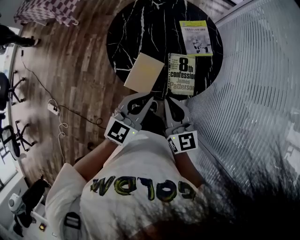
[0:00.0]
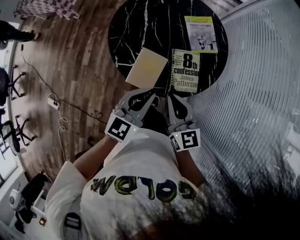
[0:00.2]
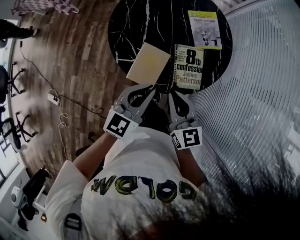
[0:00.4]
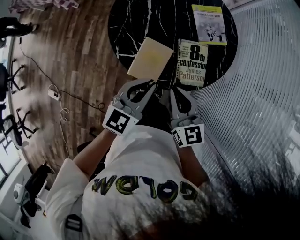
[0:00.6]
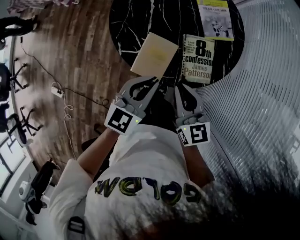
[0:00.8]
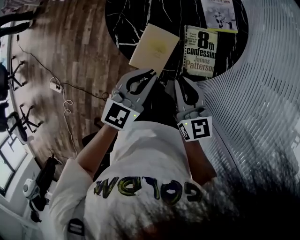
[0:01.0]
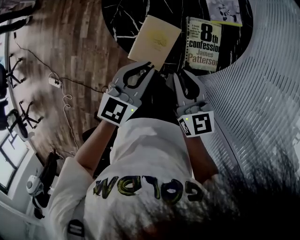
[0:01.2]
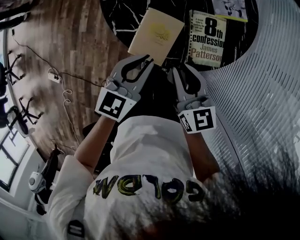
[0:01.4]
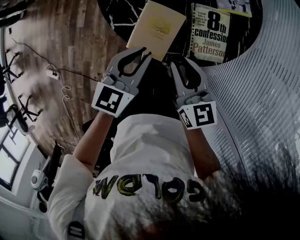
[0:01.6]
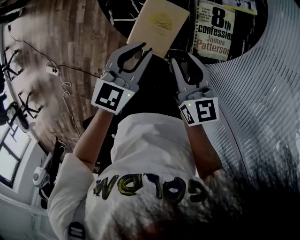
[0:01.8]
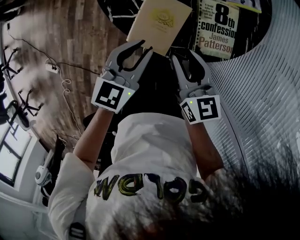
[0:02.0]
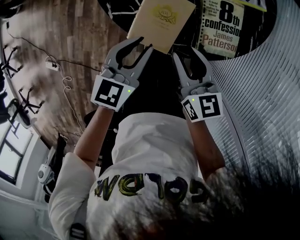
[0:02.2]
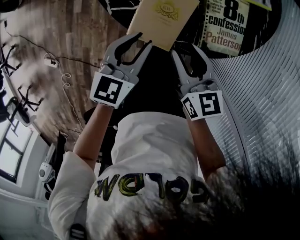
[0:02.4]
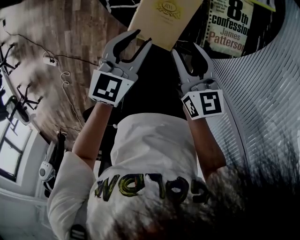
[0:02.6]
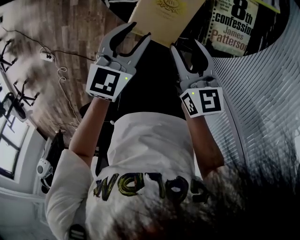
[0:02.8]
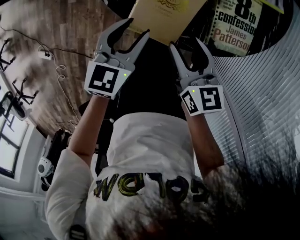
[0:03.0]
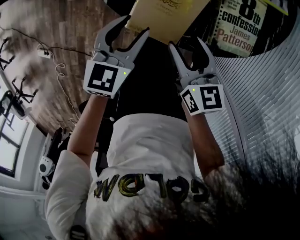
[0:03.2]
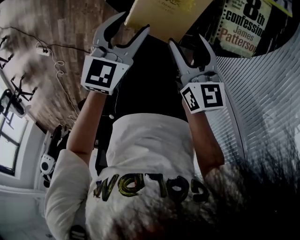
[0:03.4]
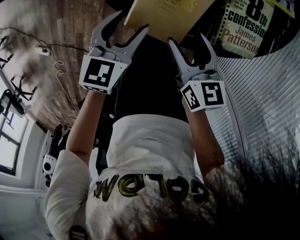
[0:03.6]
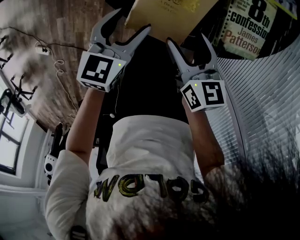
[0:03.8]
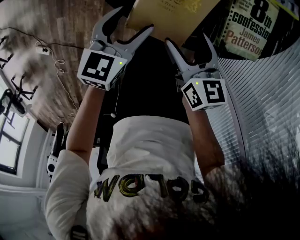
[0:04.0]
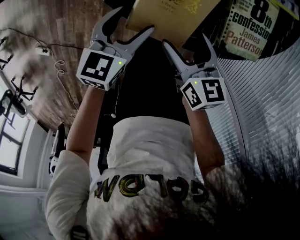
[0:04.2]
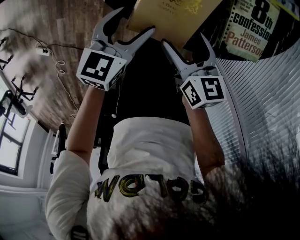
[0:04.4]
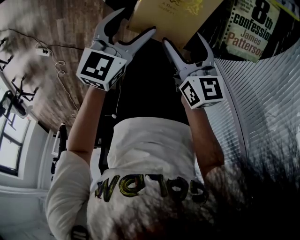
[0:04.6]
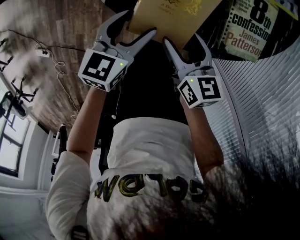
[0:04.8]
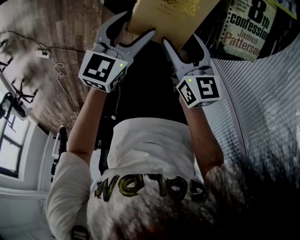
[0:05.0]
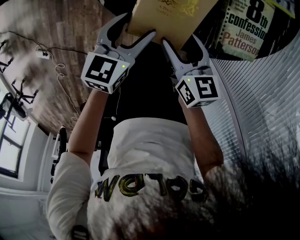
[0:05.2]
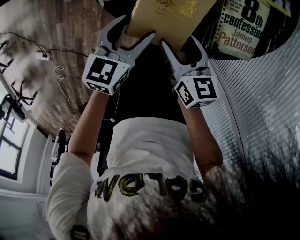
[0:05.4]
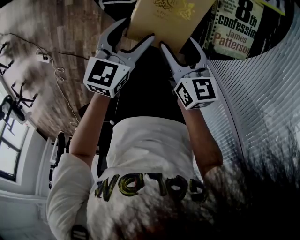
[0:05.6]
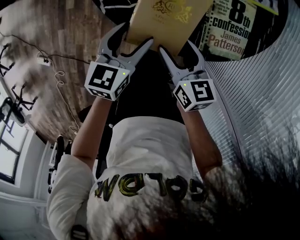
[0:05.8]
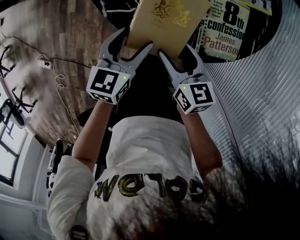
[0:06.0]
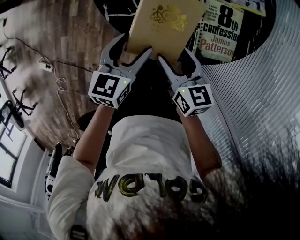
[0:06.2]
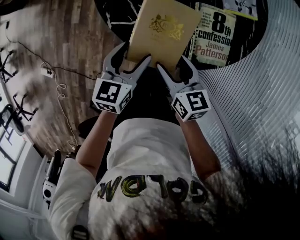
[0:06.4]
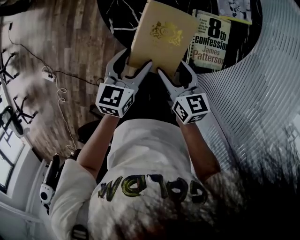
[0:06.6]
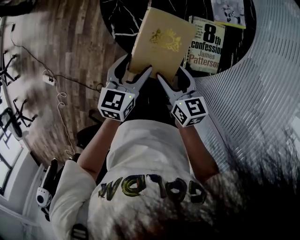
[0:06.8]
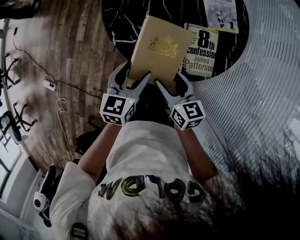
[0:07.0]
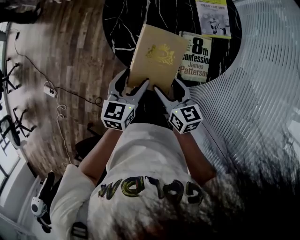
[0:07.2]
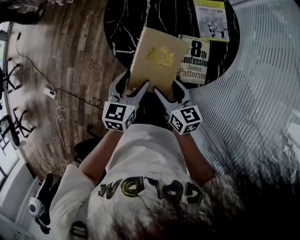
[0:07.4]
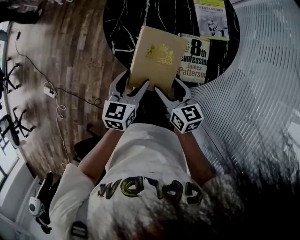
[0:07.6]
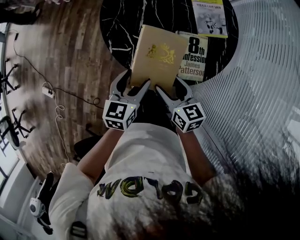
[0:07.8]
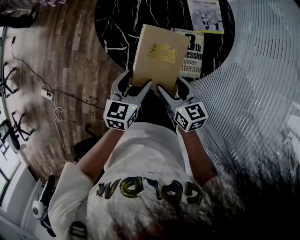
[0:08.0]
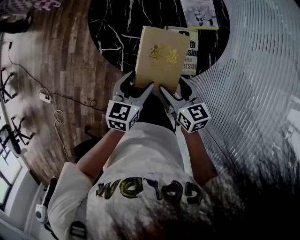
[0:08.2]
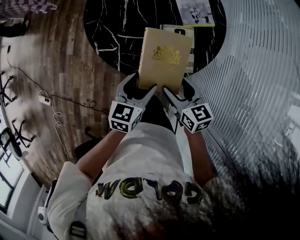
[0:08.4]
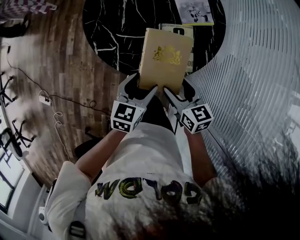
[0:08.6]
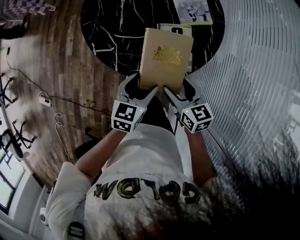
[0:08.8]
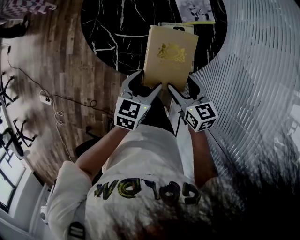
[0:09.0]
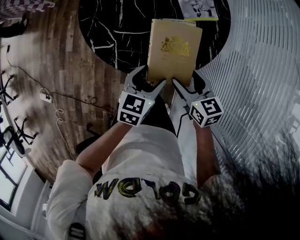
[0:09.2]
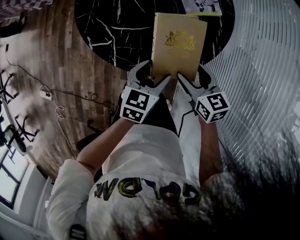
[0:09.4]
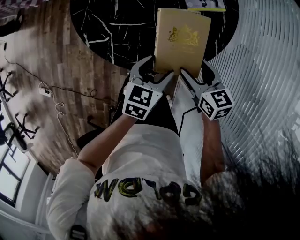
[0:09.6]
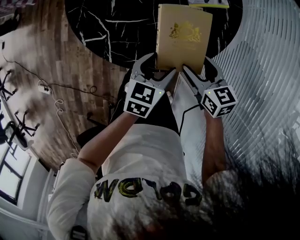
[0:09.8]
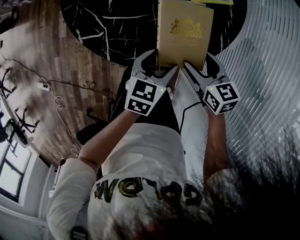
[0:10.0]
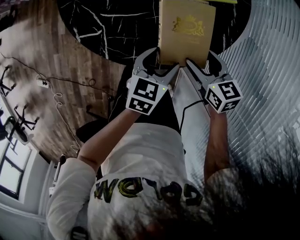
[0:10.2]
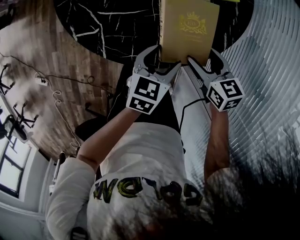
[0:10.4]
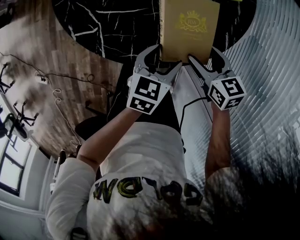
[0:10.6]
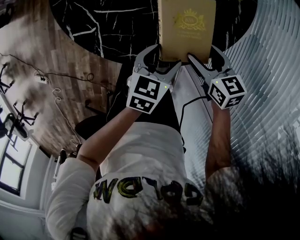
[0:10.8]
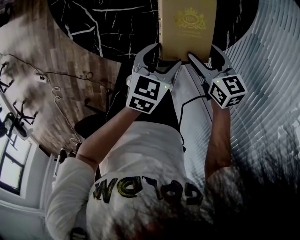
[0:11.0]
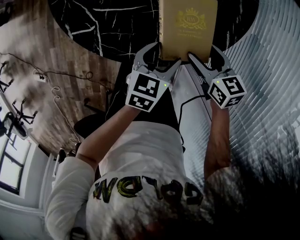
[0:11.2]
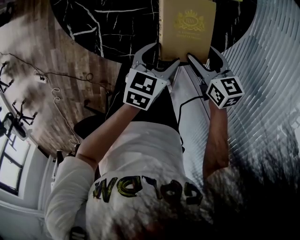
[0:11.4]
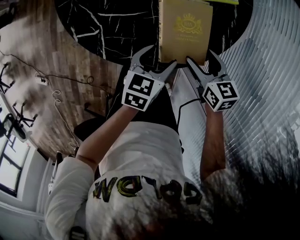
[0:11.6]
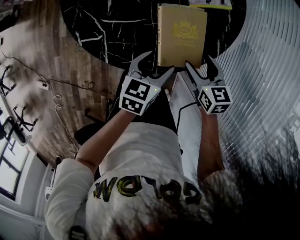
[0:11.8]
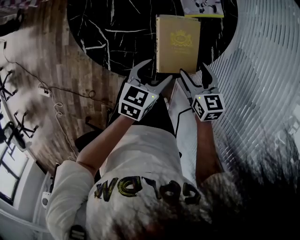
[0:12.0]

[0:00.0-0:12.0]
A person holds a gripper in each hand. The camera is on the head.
0:00.0 to 0:01.6: The two grippers go some 15 cm downward.
0:01.6 to 0:03.0: Both grippers move downward, some 10 cm. The left gripper opens up, while the right gripper opens up.
0:03.0 to 0:04.4: The two grippers go approximately 5 cm downward. The right gripper opens up. The left gripper opens its fingers.
0:04.4 to 0:06.0: The two grippers go some 5 cm upward.
0:06.0 to 0:07.6: Both grippers travel together upward, about 10 cm.
0:07.6 to 0:09.0: Both grippers travel together to the right, approximately 10 cm.
0:09.0 to 0:10.4: The left gripper is displaced downward and to the right by about 15 cm, while the right gripper moves downward, to the right and forward, roughly 15 cm.
0:10.4 to 0:12.0: The grippers make only small movements.

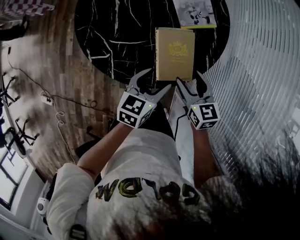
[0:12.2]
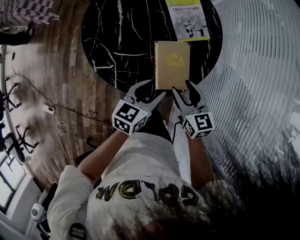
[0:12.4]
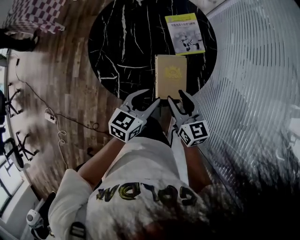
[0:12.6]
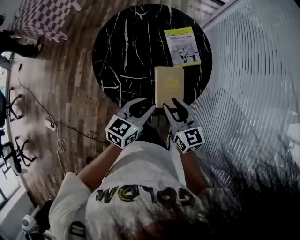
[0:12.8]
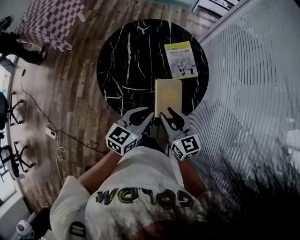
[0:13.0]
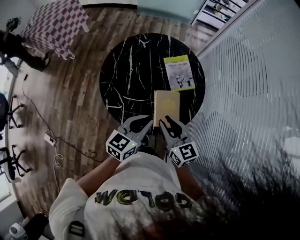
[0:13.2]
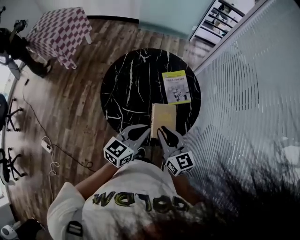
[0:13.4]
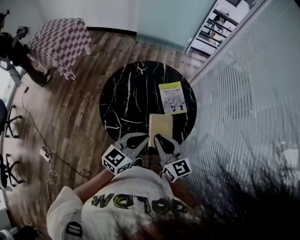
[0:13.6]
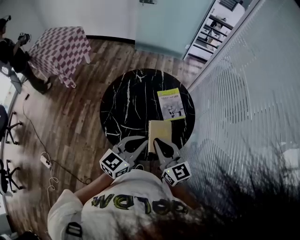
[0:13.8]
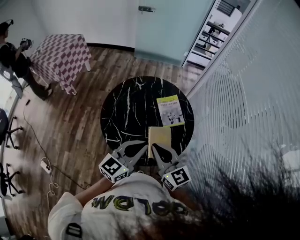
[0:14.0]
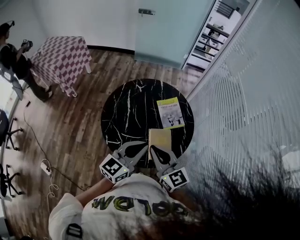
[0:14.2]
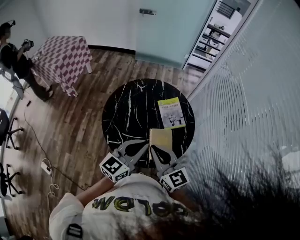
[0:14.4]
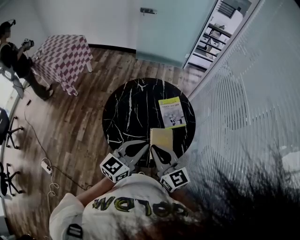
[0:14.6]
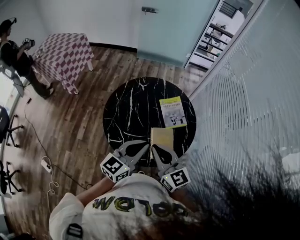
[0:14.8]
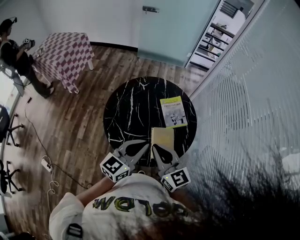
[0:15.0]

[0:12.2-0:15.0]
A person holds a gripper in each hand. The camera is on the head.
0:12.2 to 0:13.6: The right gripper goes about 25 cm upward and to the left, swivels approximately 30 degrees, and closes. The left gripper moves upward, roughly 25 cm, turns by roughly 30 degrees, and closes its fingers.
0:13.6 to 0:15.0: The right gripper moves upward, roughly 5 cm, while the left gripper ends up about 5 cm from where it was.

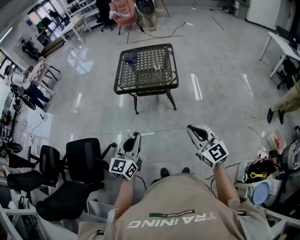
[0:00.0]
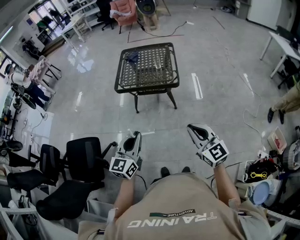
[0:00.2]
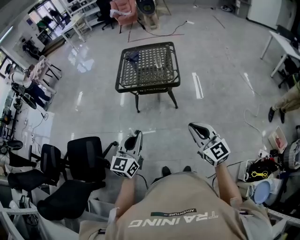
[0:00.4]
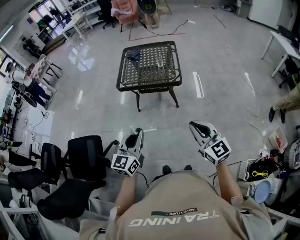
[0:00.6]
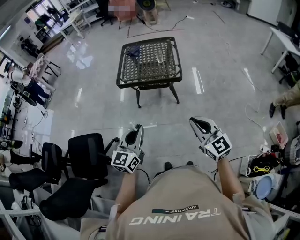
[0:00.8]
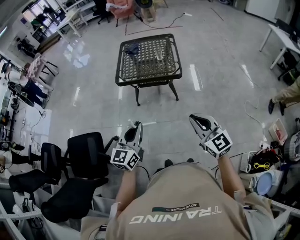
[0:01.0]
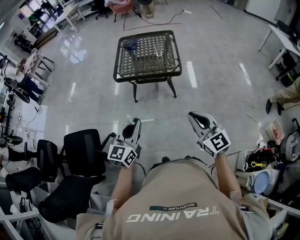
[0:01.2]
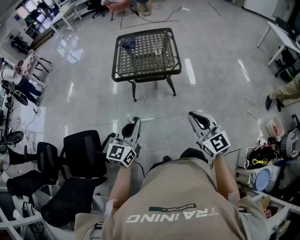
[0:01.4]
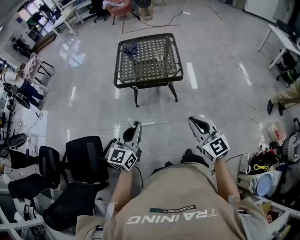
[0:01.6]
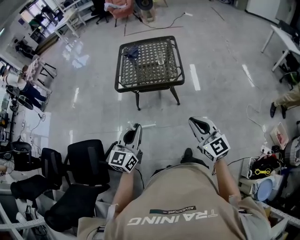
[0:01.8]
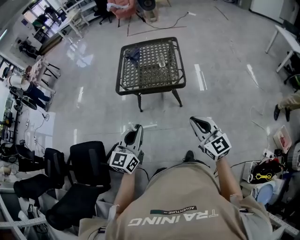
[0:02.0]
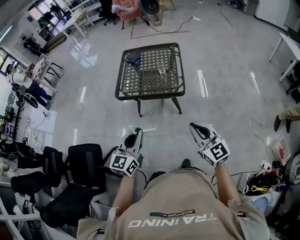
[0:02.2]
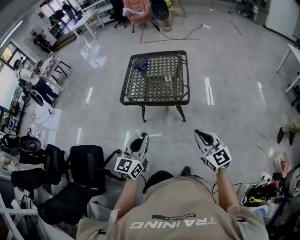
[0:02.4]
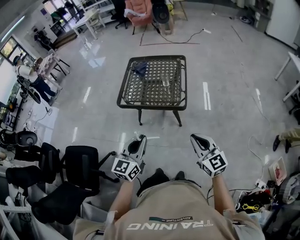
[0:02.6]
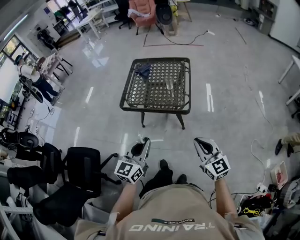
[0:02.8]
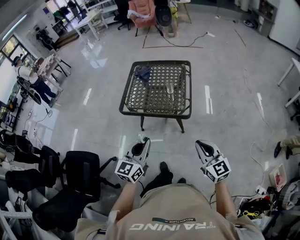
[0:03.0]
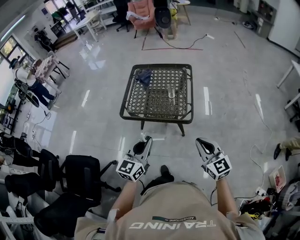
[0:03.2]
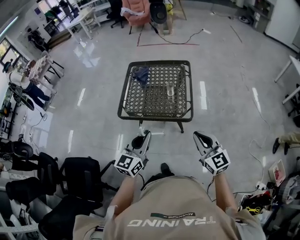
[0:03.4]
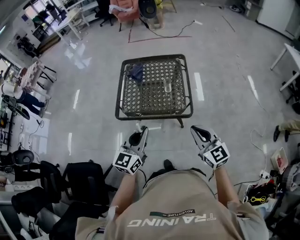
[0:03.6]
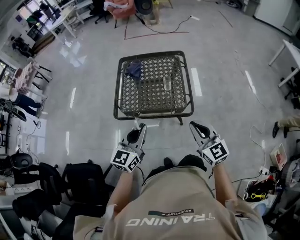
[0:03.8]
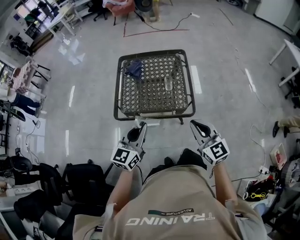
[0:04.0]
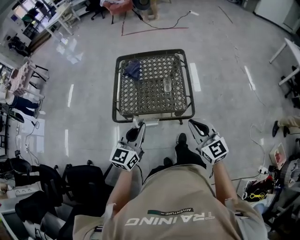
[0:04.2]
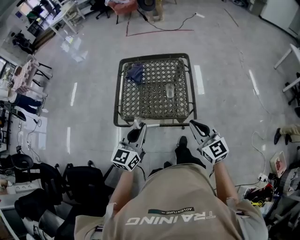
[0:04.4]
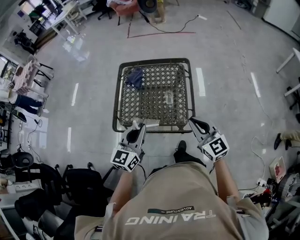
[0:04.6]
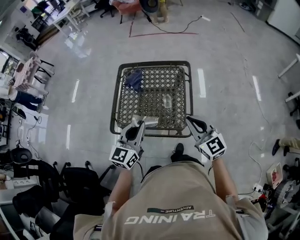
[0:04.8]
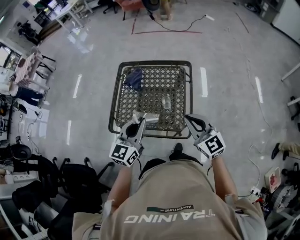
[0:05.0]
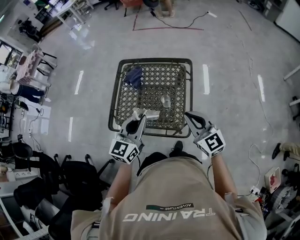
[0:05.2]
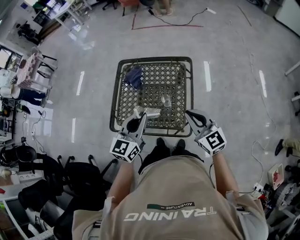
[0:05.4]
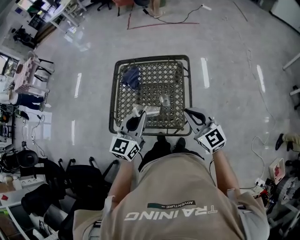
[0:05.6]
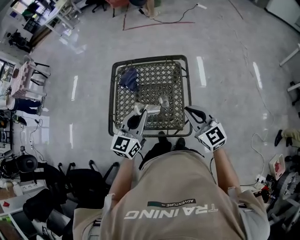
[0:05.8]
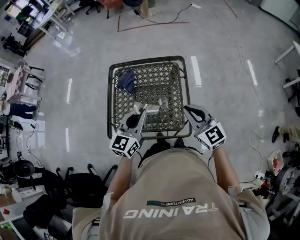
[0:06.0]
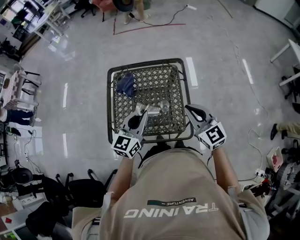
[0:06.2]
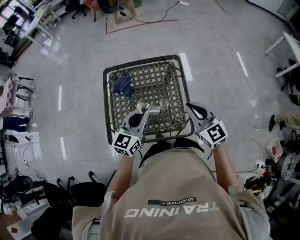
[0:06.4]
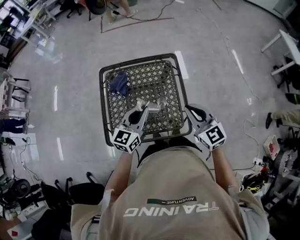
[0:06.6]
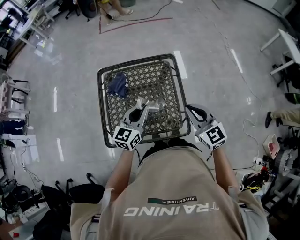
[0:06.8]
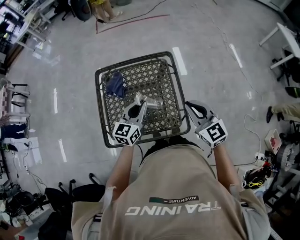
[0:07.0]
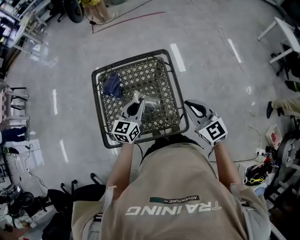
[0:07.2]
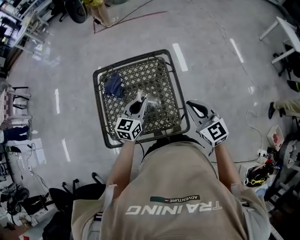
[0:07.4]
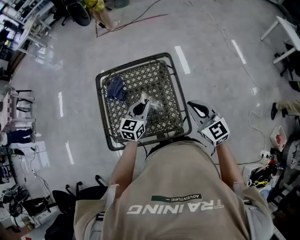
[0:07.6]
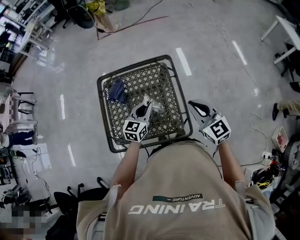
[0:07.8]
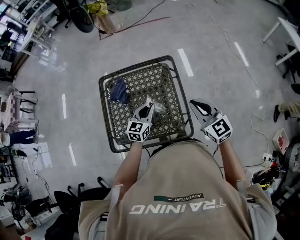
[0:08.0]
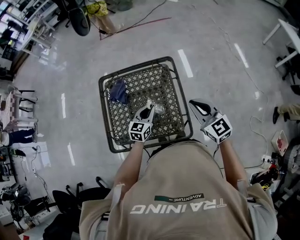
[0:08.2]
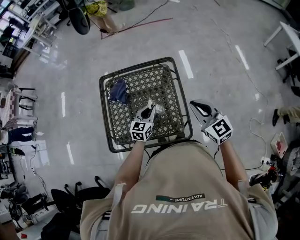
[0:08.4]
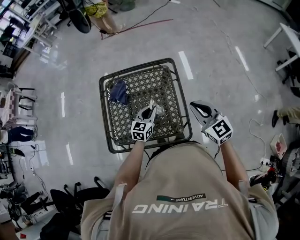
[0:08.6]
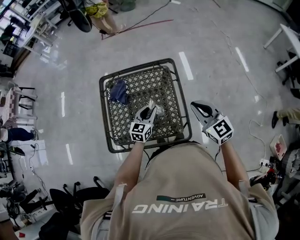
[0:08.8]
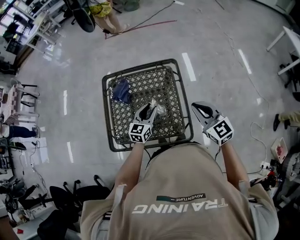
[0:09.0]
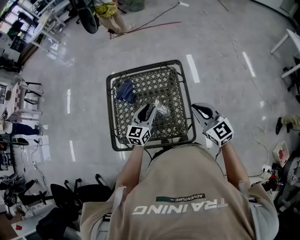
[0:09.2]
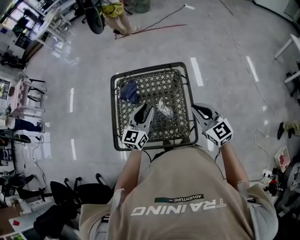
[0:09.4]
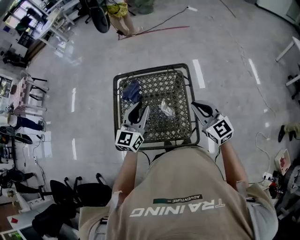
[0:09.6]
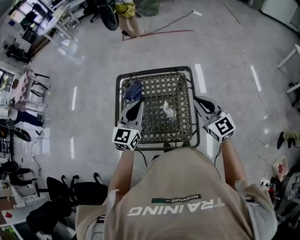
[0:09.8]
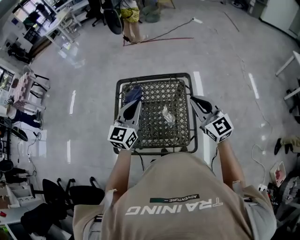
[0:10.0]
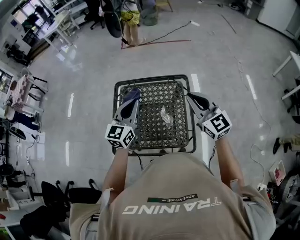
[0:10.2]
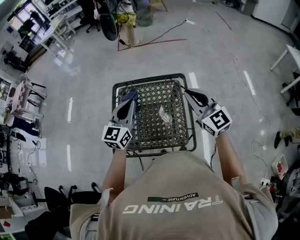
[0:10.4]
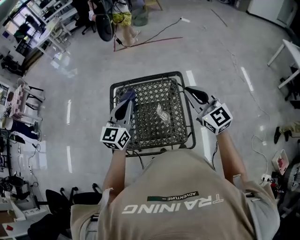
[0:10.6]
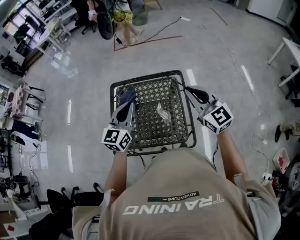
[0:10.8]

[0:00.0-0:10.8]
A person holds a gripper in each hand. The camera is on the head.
0:00.0 to 0:01.6: The left gripper moves forward, some 5 cm, while the right gripper travels to the left and forward by some 10 cm.
0:01.6 to 0:03.0: The two grippers go some 20 cm forward and to the right.
0:03.0 to 0:04.6: Both grippers travel together forward, about 25 cm.
0:04.6 to 0:06.2: The two grippers go roughly 15 cm forward.
0:06.2 to 0:07.8: The left gripper moves downward, forward and to the right, about 15 cm; the right gripper shifts some 5 cm to the right.
0:07.8 to 0:09.2: The left gripper opens its fingers.
0:09.2 to 0:10.8: The right gripper heads upward, covering approximately 10 cm, while the left gripper travels upward and to the left by some 20 cm, and closes up.
